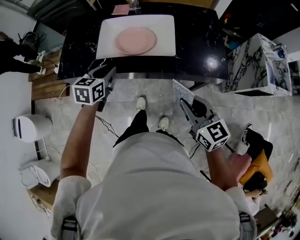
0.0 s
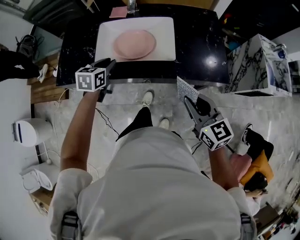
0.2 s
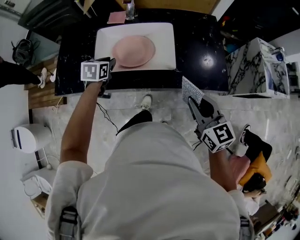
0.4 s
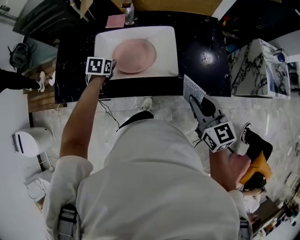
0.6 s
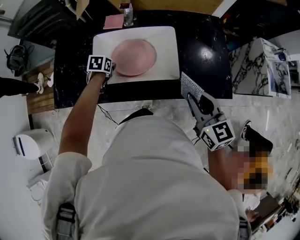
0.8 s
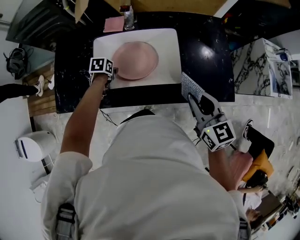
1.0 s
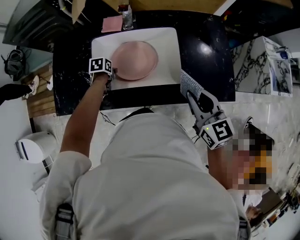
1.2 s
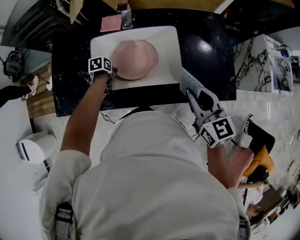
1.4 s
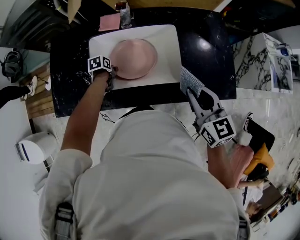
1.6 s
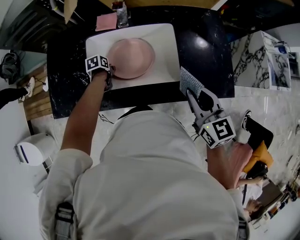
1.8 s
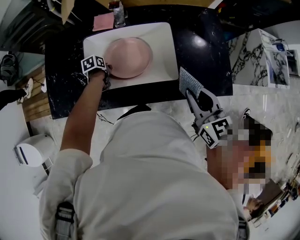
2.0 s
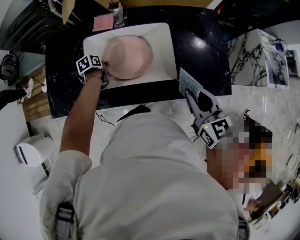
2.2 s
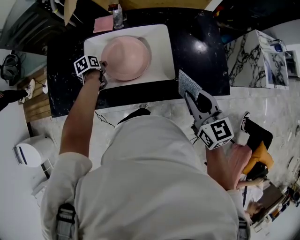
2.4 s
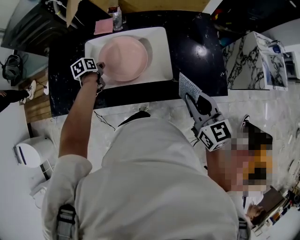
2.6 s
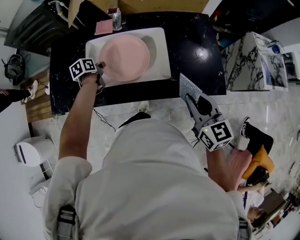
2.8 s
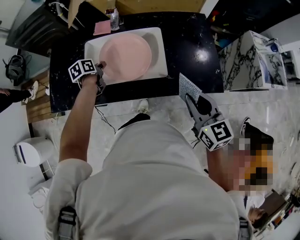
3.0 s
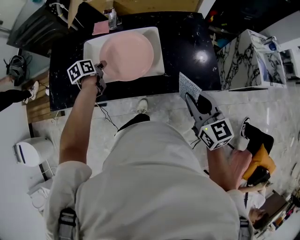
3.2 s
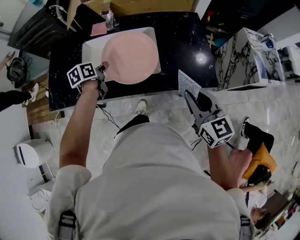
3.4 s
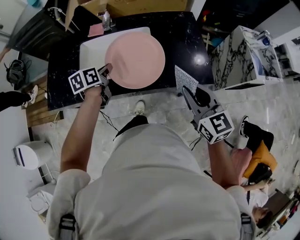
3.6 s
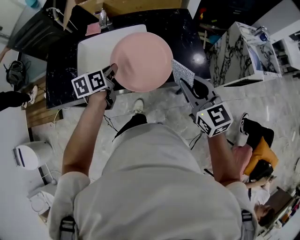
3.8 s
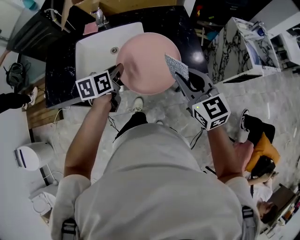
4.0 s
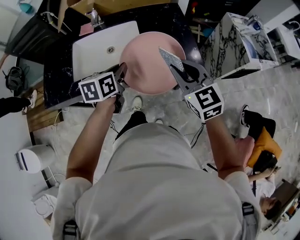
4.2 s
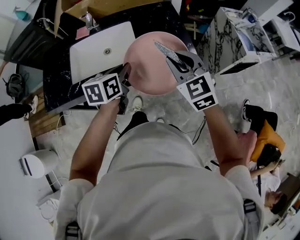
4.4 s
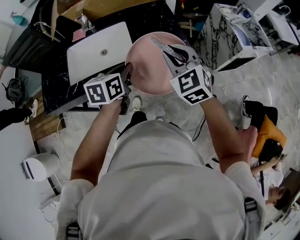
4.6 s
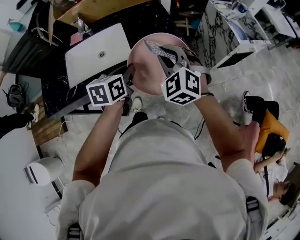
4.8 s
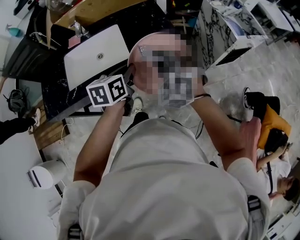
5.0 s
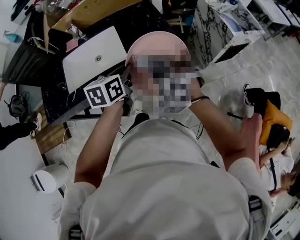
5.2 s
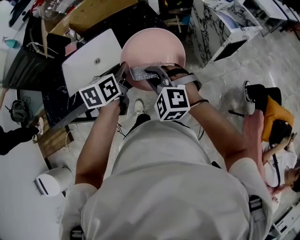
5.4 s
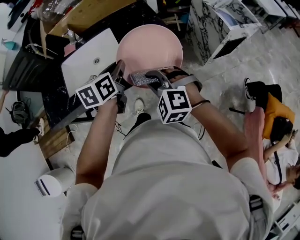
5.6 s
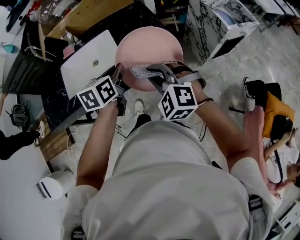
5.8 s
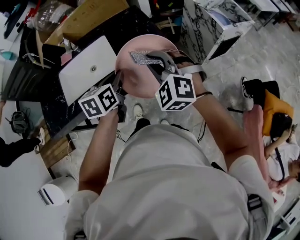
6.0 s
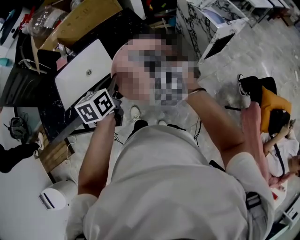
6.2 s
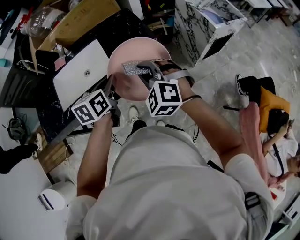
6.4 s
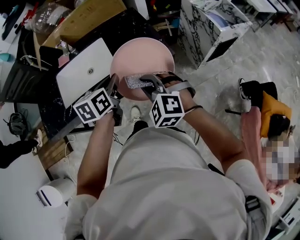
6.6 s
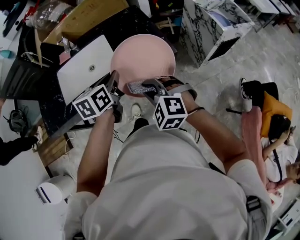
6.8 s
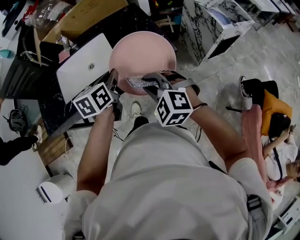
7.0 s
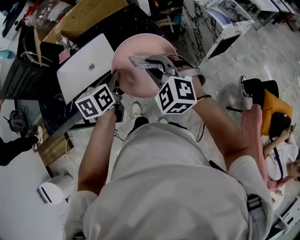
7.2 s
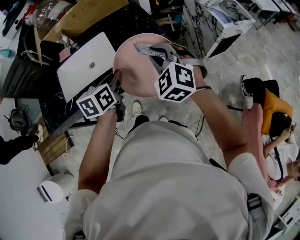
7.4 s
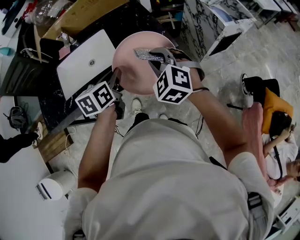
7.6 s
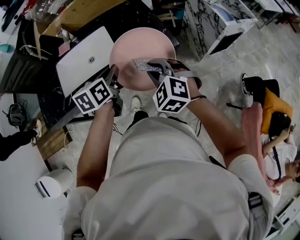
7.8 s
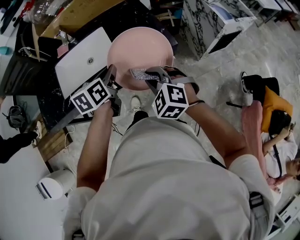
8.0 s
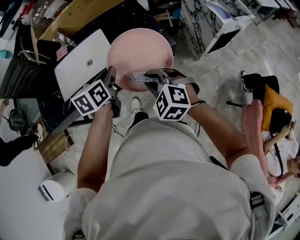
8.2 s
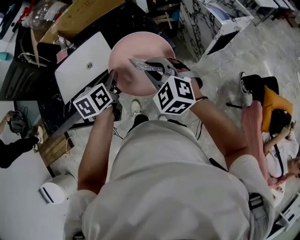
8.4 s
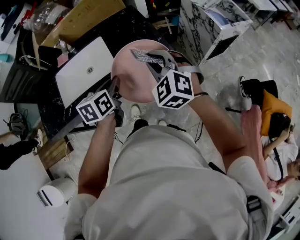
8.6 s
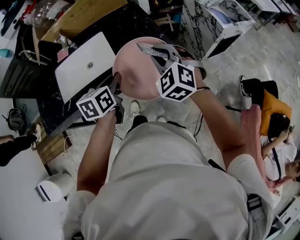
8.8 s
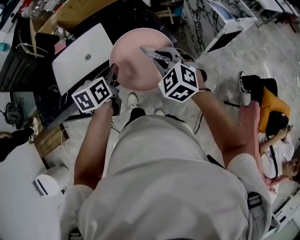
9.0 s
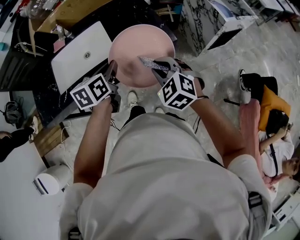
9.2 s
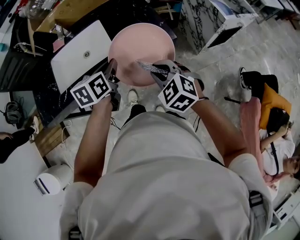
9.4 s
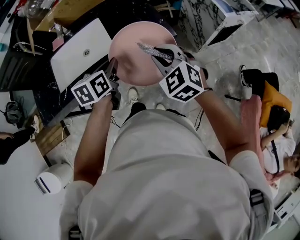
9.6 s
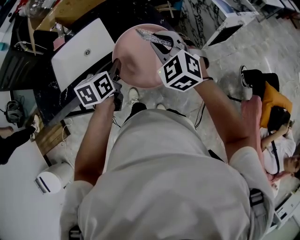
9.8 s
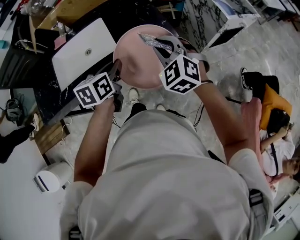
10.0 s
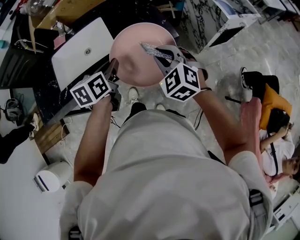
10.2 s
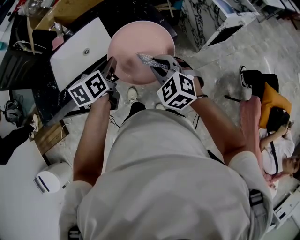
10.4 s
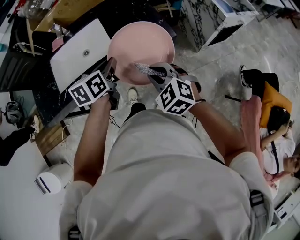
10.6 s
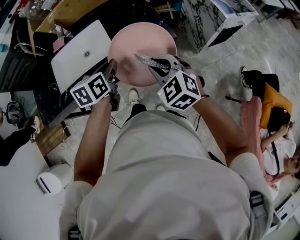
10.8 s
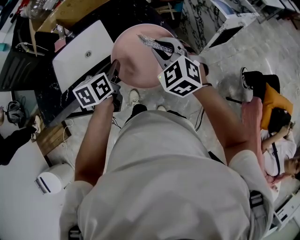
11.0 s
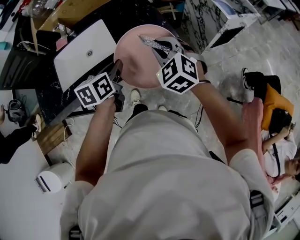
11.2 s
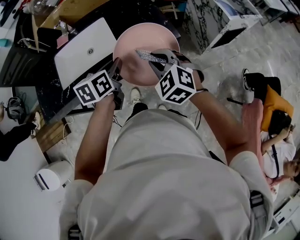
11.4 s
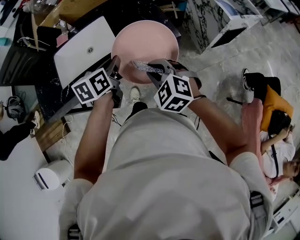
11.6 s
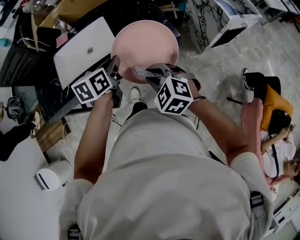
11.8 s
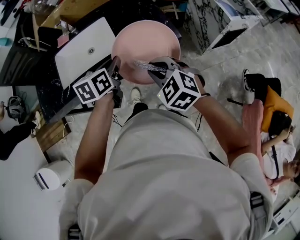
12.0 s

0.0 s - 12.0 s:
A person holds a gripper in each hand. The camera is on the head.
0.0 s - 1.6 s: The left gripper heads downward and forward, covering about 35 cm, and tips its fingers downward by approximately 30 degrees, while the right gripper heads forward, covering approximately 20 cm.
1.6 s - 3.0 s: The right gripper moves to the right and backward, approximately 10 cm. Meanwhile the left gripper travels upward by approximately 15 cm, changes its angle by about 30 degrees, and closes its fingers.
3.0 s - 4.4 s: The left gripper is displaced to the right, backward and upward by about 35 cm, and turns by roughly 30 degrees, while the right gripper moves to the right, roughly 5 cm, and changes its angle by some 30 degrees.
4.4 s - 6.0 s: The left gripper travels to the right by about 5 cm; the right gripper changes its angle by roughly 30 degrees.
6.0 s - 7.6 s: The right gripper moves roughly 5 cm backward and comes back.
7.6 s - 9.0 s: The right gripper goes backward and returns, approximately 5 cm each way.
9.0 s - 10.4 s: The right gripper changes place by about 5 cm.
10.4 s - 12.0 s: The right gripper goes forward and returns, roughly 5 cm each way.

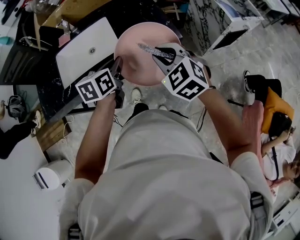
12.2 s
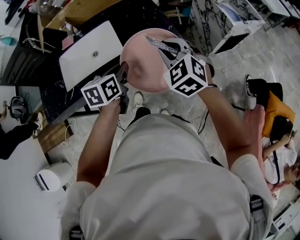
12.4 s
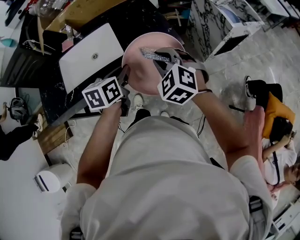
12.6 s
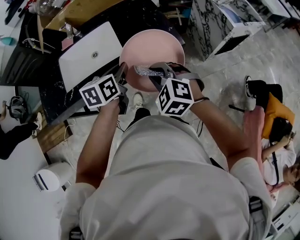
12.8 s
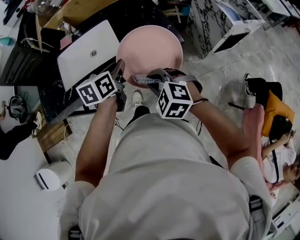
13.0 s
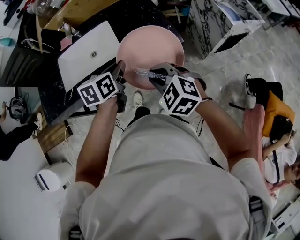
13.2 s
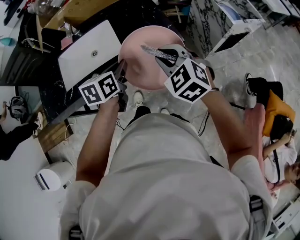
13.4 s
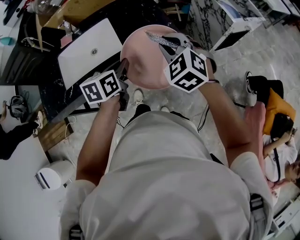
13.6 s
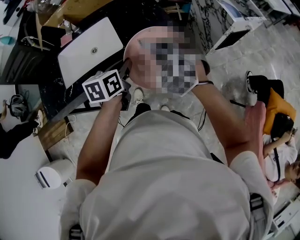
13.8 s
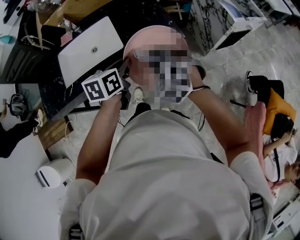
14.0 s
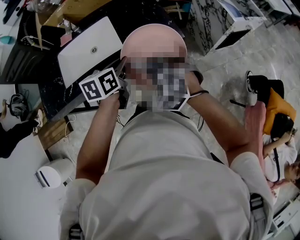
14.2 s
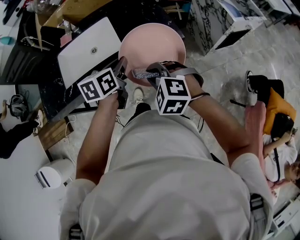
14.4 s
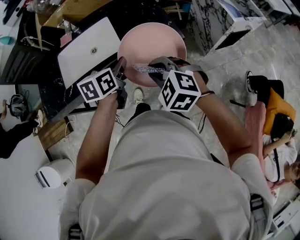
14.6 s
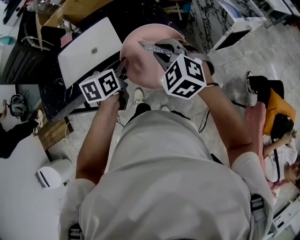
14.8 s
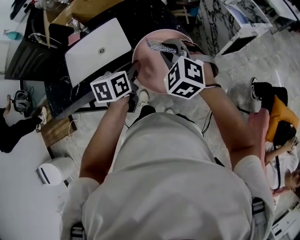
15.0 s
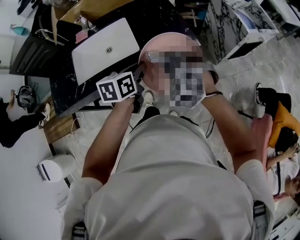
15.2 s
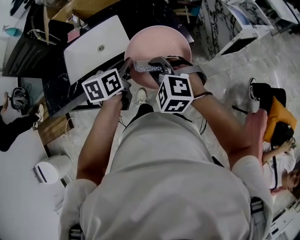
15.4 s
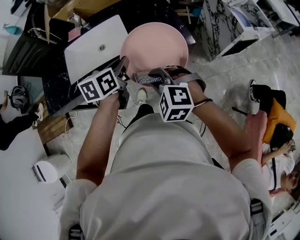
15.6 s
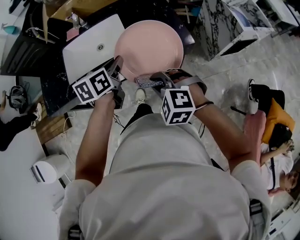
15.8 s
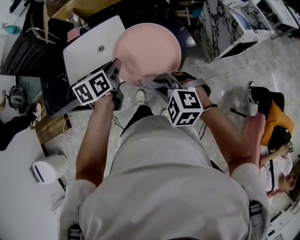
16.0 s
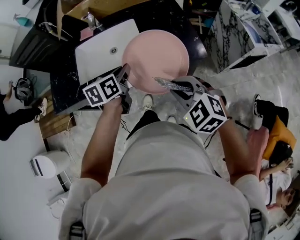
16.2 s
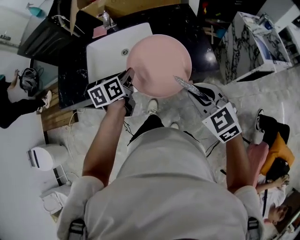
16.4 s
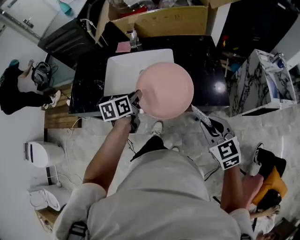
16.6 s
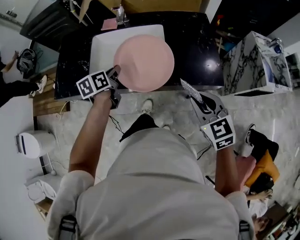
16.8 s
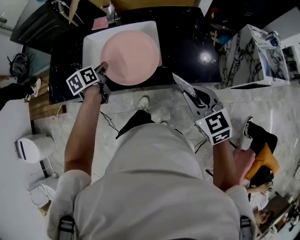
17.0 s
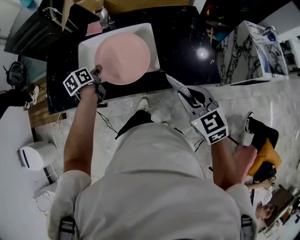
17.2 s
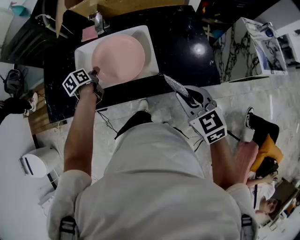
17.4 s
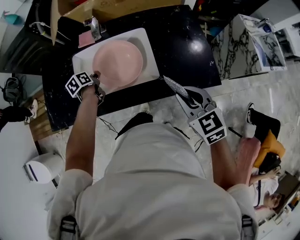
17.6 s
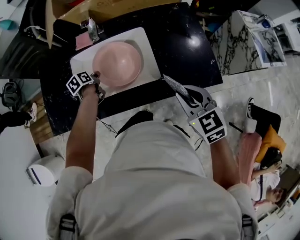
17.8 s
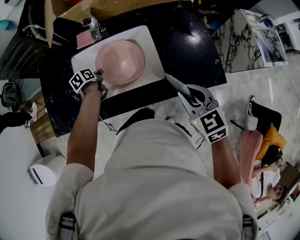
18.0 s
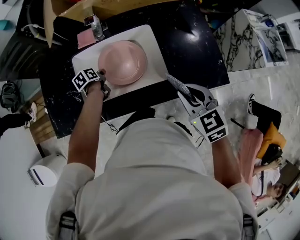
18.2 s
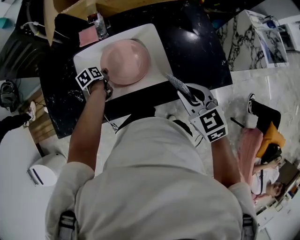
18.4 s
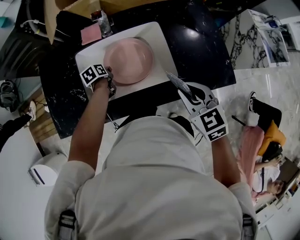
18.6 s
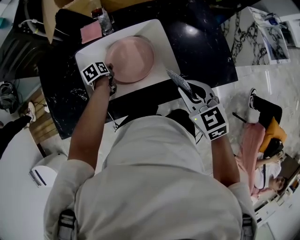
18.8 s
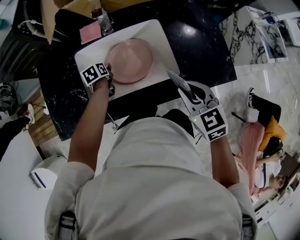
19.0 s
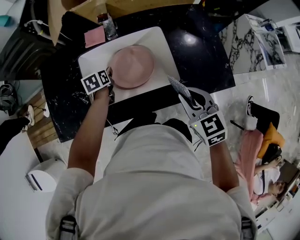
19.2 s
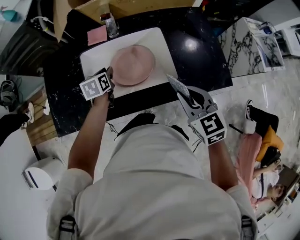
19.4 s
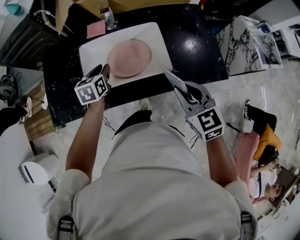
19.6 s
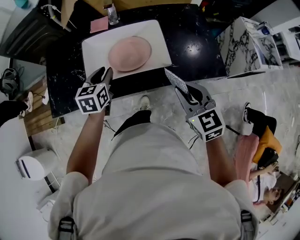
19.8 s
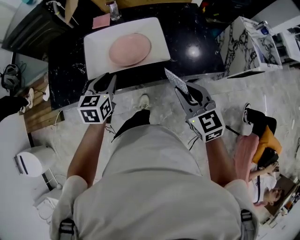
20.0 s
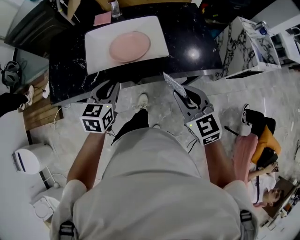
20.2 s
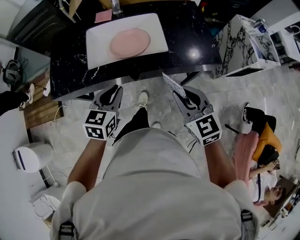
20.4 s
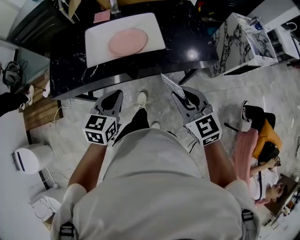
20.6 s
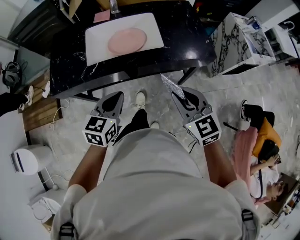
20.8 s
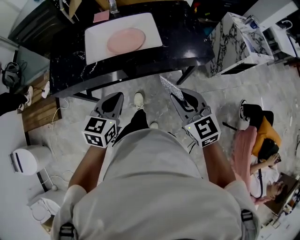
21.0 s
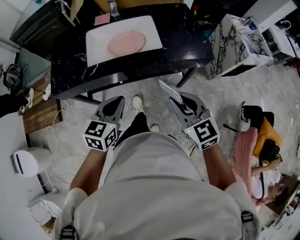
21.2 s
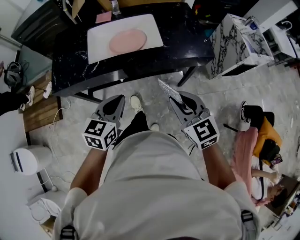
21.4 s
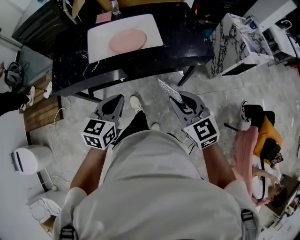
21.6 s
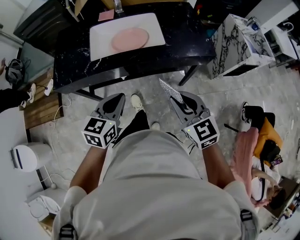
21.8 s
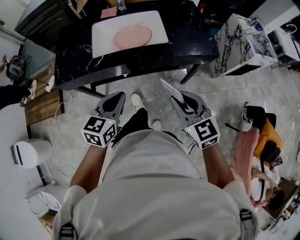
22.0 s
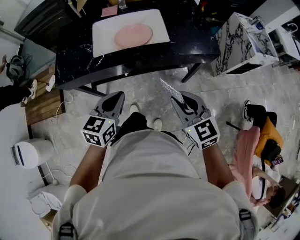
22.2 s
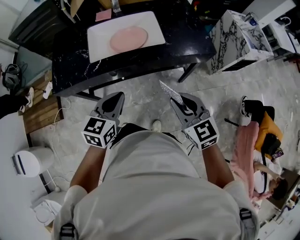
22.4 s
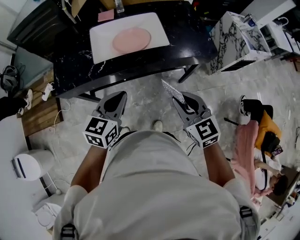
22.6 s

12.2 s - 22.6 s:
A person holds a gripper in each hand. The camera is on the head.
13.6 s - 15.2 s: The right gripper heads to the left, covering approximately 5 cm, and goes backward and returns, some 10 cm each way.
15.2 s - 16.6 s: The left gripper goes about 20 cm to the left, and rotates about 20 degrees. Meanwhile the right gripper rotates approximately 30 degrees.
16.6 s - 18.2 s: The right gripper shifts about 15 cm forward and to the left. Meanwhile the left gripper travels forward, downward and to the left by about 30 cm, and changes its angle by roughly 30 degrees.
18.2 s - 19.6 s: The left gripper moves upward and backward, roughly 15 cm, swivels approximately 40 degrees, and opens up. Meanwhile the right gripper changes place by some 5 cm.
19.6 s - 21.2 s: The left gripper is displaced backward by roughly 35 cm, turns by some 20 degrees, and closes. Meanwhile the right gripper shifts approximately 25 cm backward.
21.2 s - 22.6 s: The left gripper changes place by about 5 cm. The right gripper travels to the left by some 5 cm.

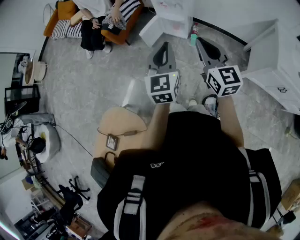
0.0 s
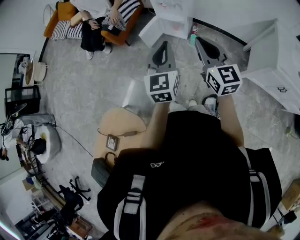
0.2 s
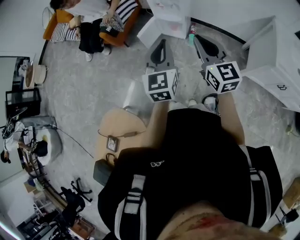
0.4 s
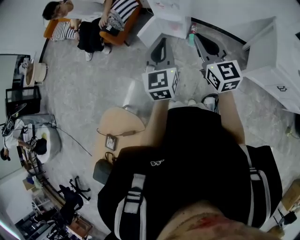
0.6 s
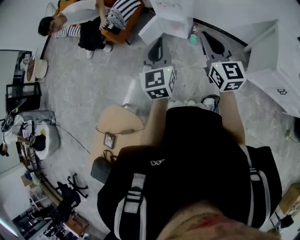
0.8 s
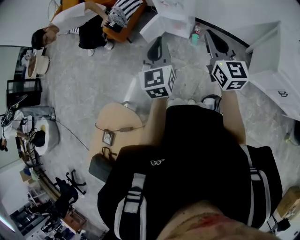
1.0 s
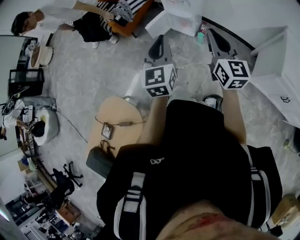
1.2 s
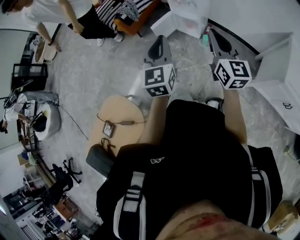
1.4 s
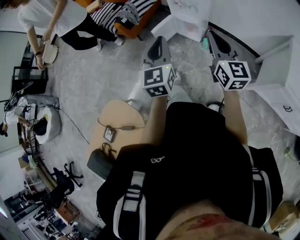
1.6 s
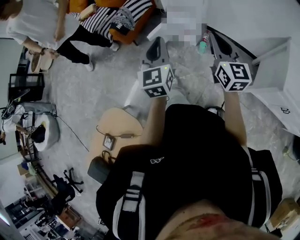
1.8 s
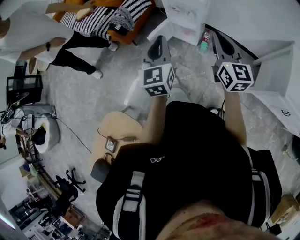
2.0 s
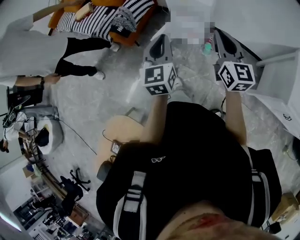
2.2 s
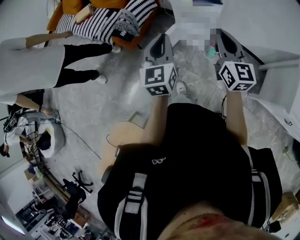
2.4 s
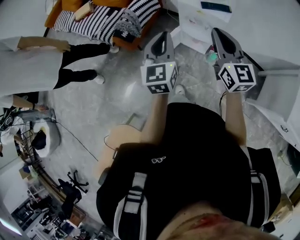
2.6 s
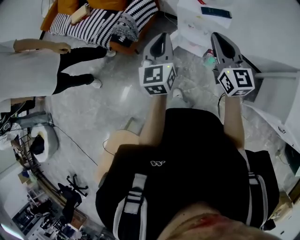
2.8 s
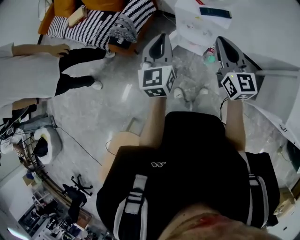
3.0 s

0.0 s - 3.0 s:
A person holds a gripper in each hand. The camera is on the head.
0.0 s - 1.6 s: The right gripper ends up about 5 cm from where it was.
1.6 s - 3.0 s: Both grippers move forward, approximately 35 cm.
